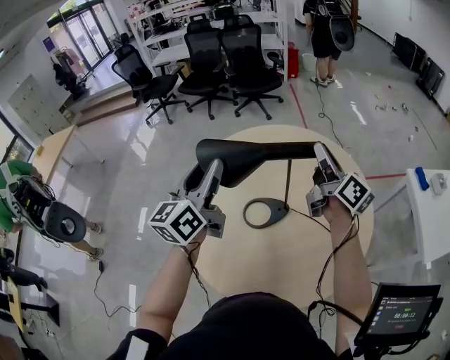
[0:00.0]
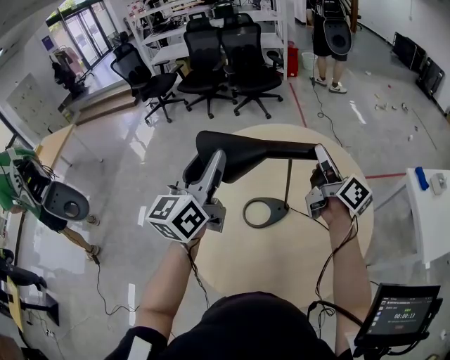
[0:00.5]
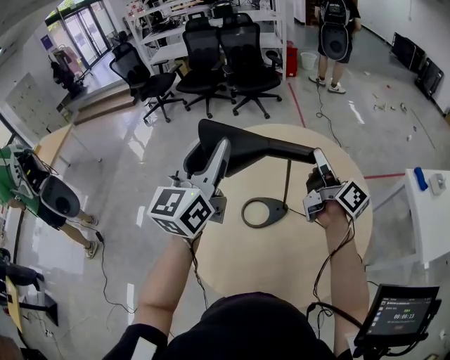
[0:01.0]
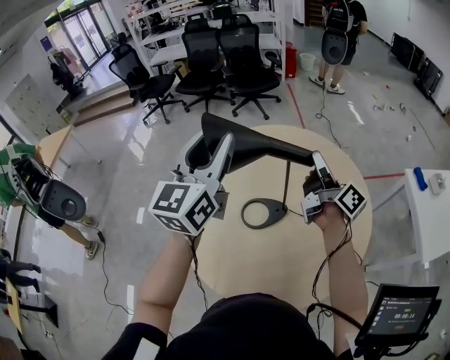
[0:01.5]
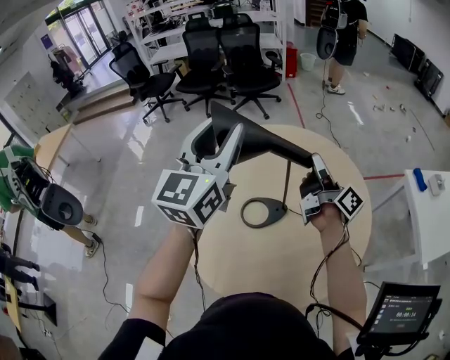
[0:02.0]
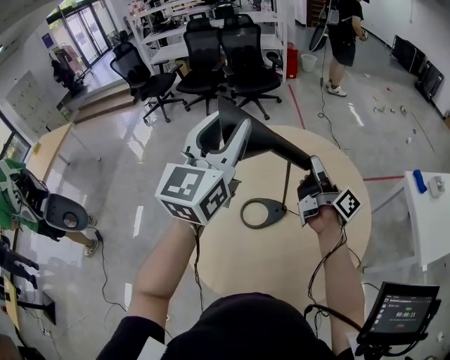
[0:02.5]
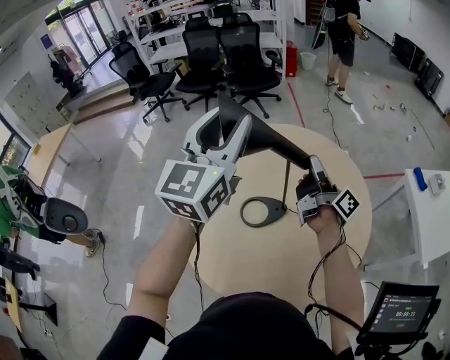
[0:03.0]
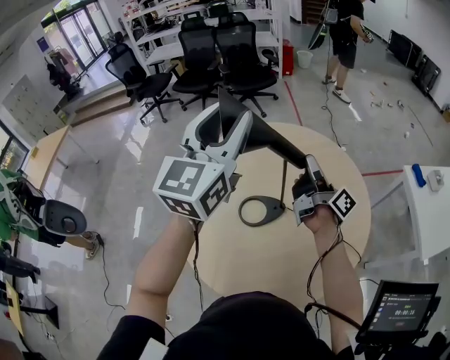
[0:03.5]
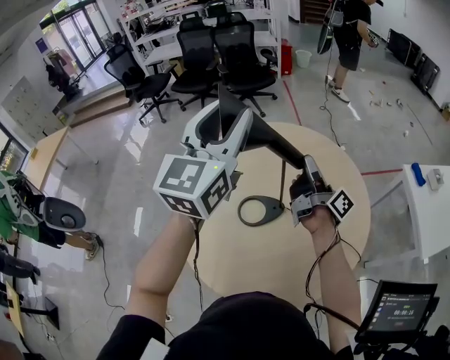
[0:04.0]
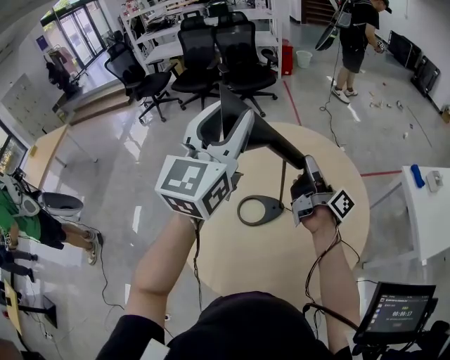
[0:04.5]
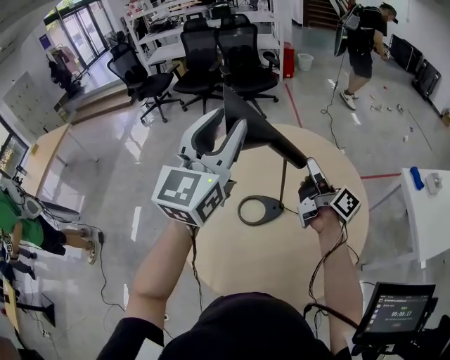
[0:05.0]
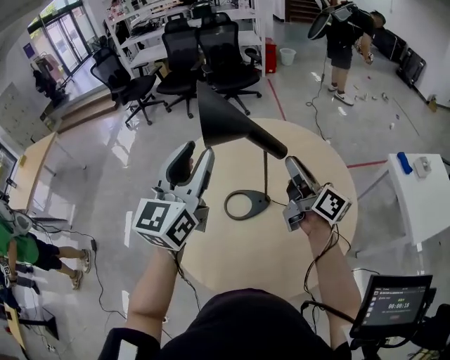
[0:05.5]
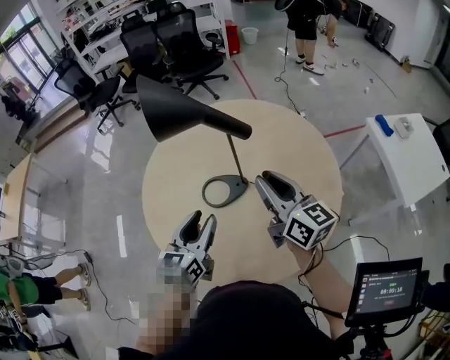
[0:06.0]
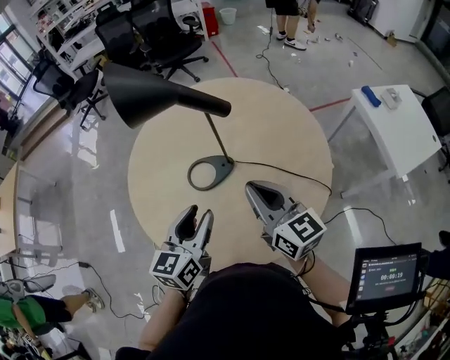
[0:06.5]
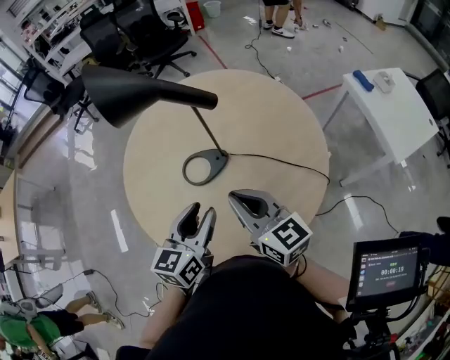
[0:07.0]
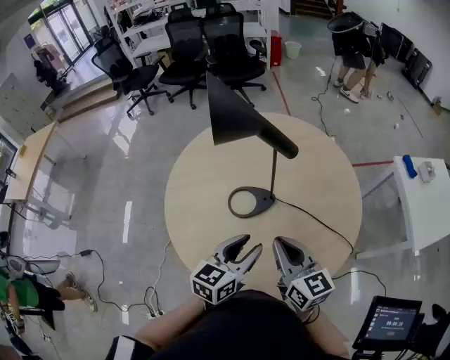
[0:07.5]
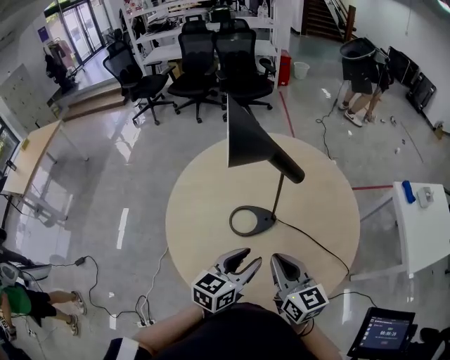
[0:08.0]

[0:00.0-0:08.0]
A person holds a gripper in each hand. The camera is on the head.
0:00.0 to 0:02.0: The left gripper travels upward and to the right by some 10 cm, and changes its angle by about 20 degrees, while the right gripper is displaced downward by about 5 cm, and swivels roughly 20 degrees.
0:02.0 to 0:04.0: The grippers move only a little.
0:04.0 to 0:06.0: The left gripper is displaced downward and backward by some 30 cm, and swivels about 30 degrees; the right gripper heads backward, covering approximately 15 cm, and twists roughly 50 degrees counterclockwise, seen from behind.
0:06.0 to 0:08.0: The right gripper travels backward, downward and to the left by approximately 10 cm, and closes. Meanwhile the left gripper shifts by roughly 5 cm.

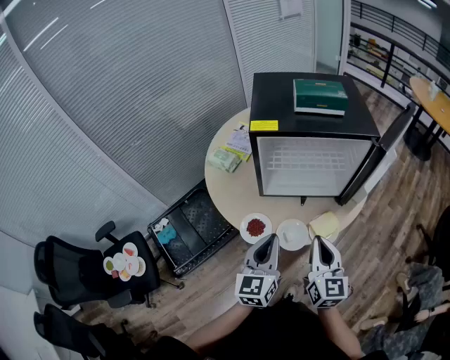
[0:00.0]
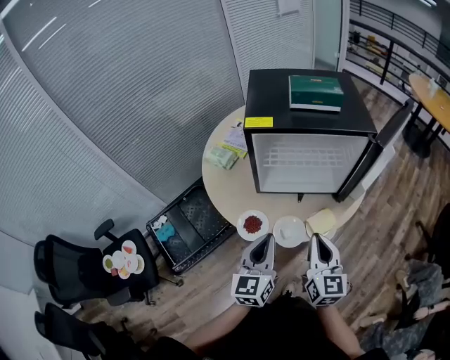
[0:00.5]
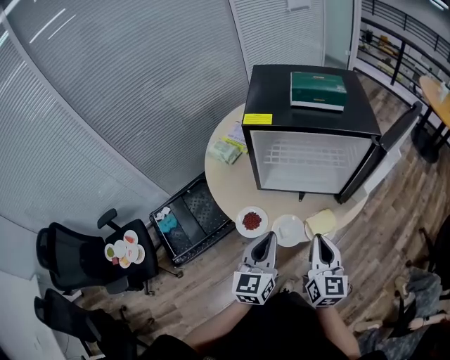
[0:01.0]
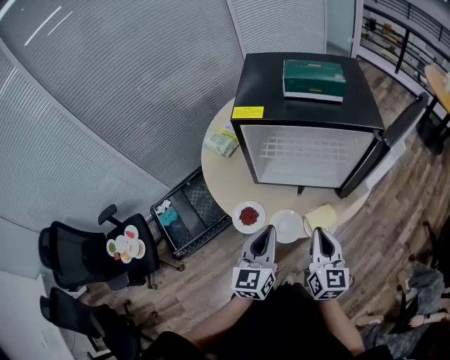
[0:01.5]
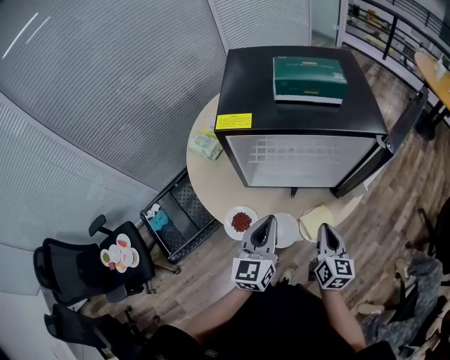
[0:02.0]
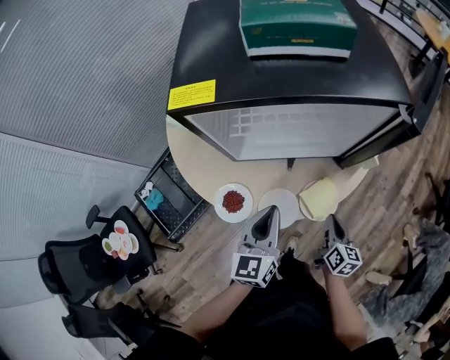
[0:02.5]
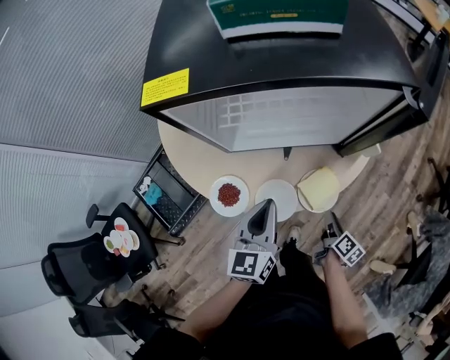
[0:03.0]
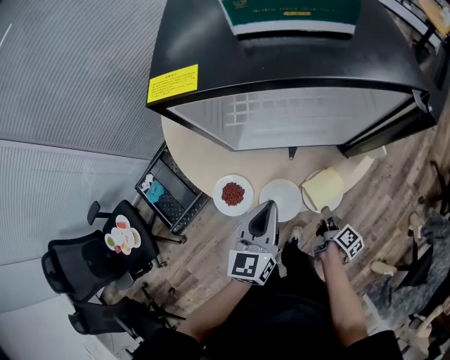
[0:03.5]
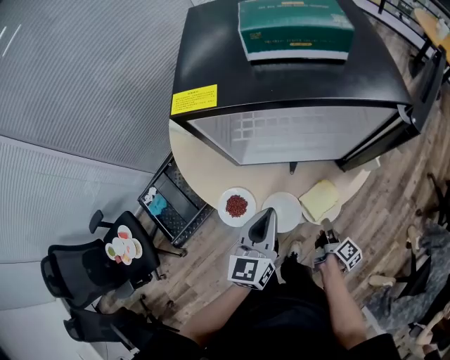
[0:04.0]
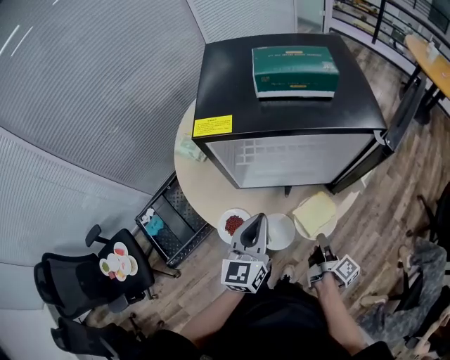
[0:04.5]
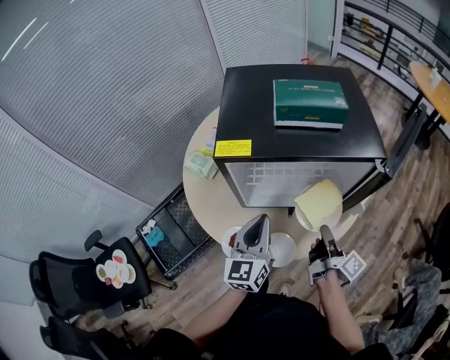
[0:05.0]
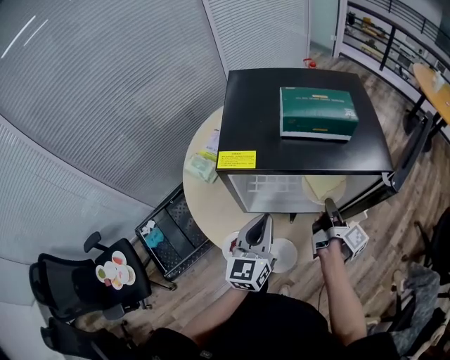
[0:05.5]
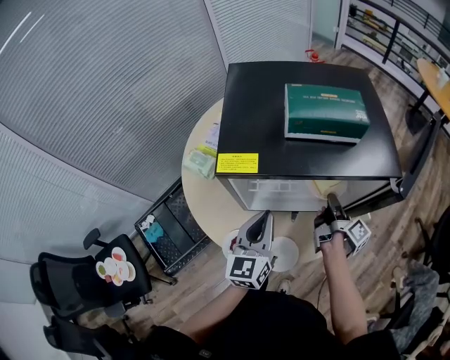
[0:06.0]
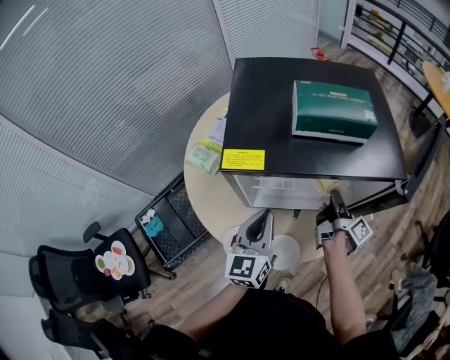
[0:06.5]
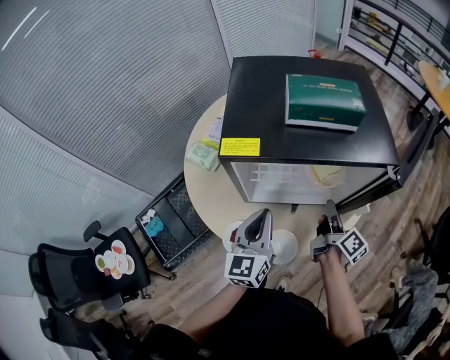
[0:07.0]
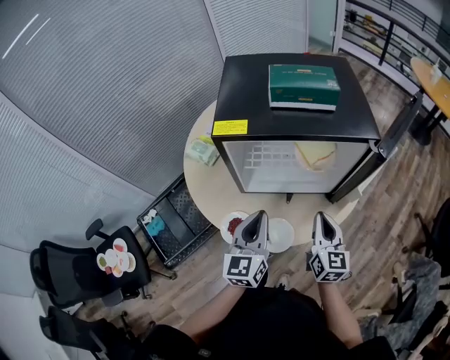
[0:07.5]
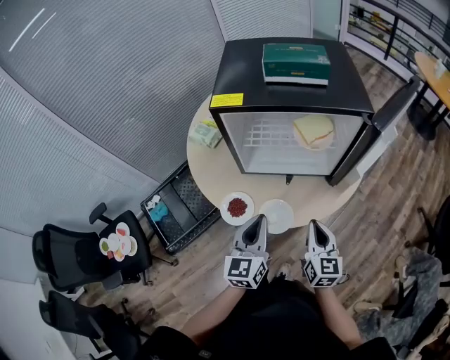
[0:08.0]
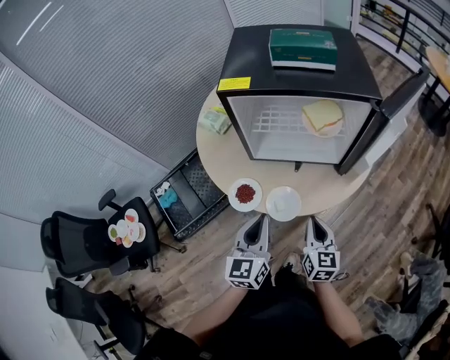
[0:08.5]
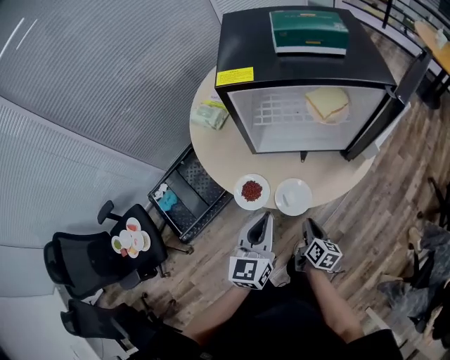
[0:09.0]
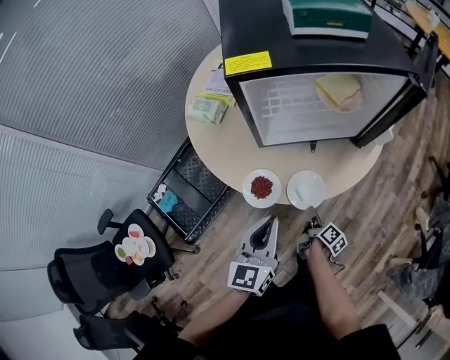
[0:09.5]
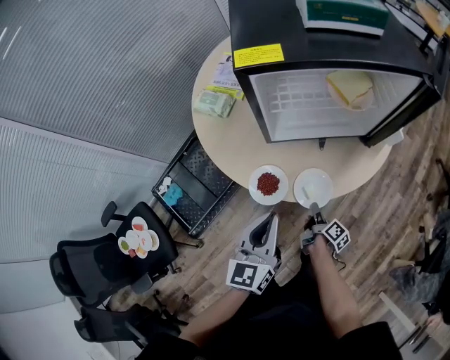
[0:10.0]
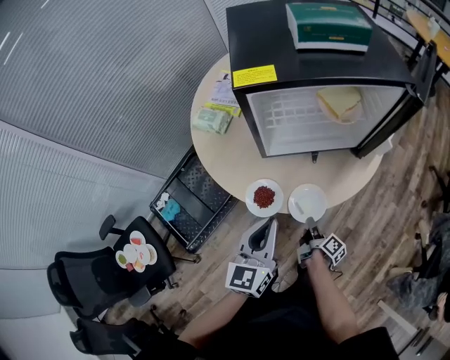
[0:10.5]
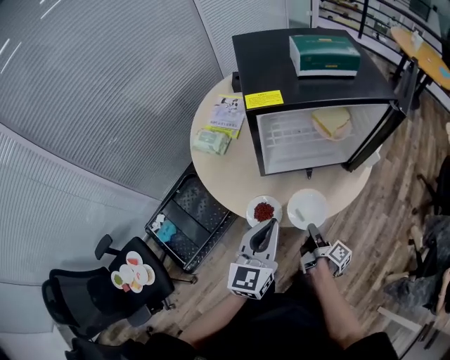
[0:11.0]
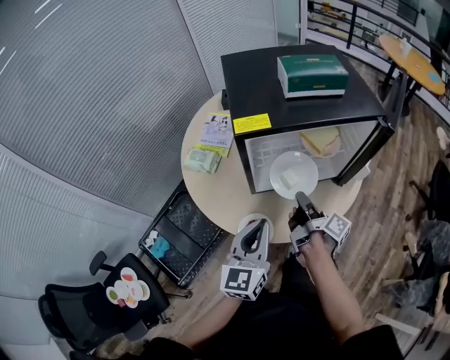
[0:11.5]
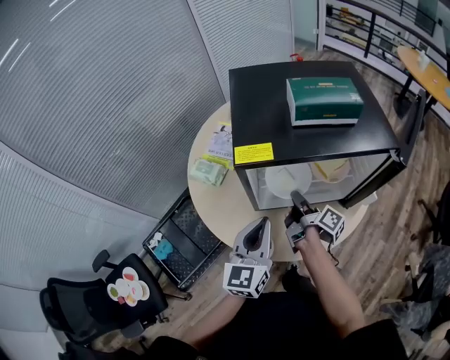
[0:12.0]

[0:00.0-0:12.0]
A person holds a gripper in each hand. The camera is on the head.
0:00.0 to 0:02.0: The left gripper is displaced forward and to the right by about 10 cm. The right gripper moves downward, to the right and forward, approximately 15 cm.
0:02.0 to 0:04.0: The left gripper is displaced downward by about 5 cm, while the right gripper moves downward, some 20 cm, twists approximately 50 degrees clockwise, seen from behind, and opens, then closes once more.
0:04.0 to 0:06.0: The left gripper is displaced forward and upward by roughly 15 cm. Meanwhile the right gripper is displaced forward and upward by about 30 cm, and turns by approximately 20 degrees.
0:06.0 to 0:08.0: Both grippers travel together backward, approximately 20 cm. The right gripper rotates around the line of its fingers by approximately 70 degrees, counterclockwise from behind.
0:08.0 to 0:10.0: The right gripper goes some 30 cm downward and to the left, and rotates around the line of its fingers by roughly 70 degrees, clockwise from behind. The left gripper shifts roughly 10 cm to the left.
0:10.0 to 0:12.0: The right gripper shifts some 35 cm upward and forward, and rotates approximately 20 degrees; the left gripper is displaced forward and upward by about 15 cm.

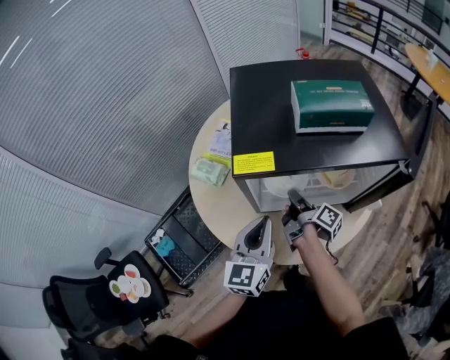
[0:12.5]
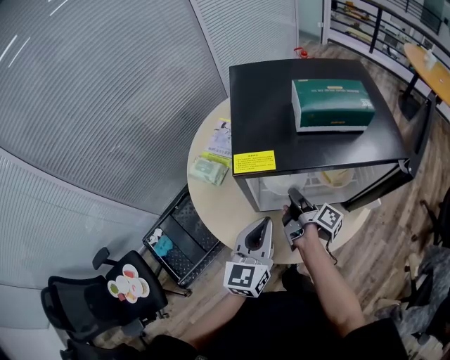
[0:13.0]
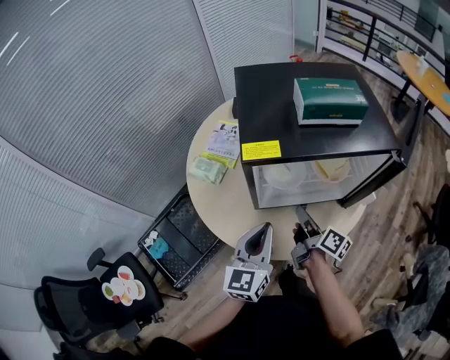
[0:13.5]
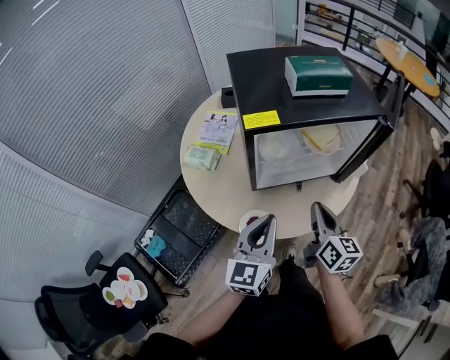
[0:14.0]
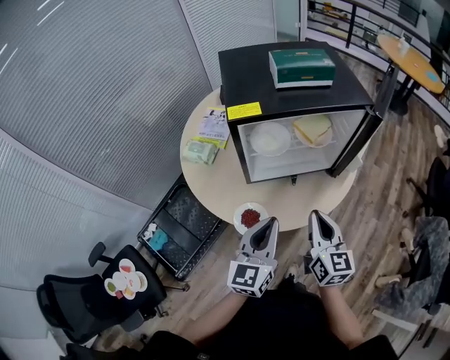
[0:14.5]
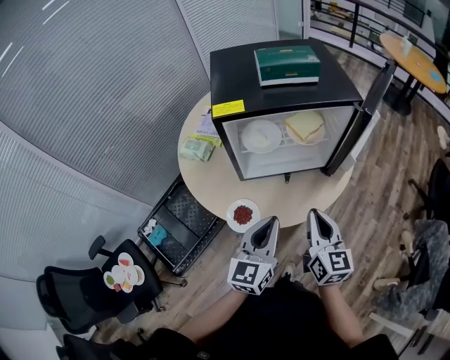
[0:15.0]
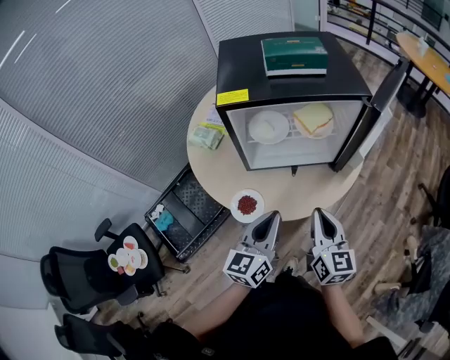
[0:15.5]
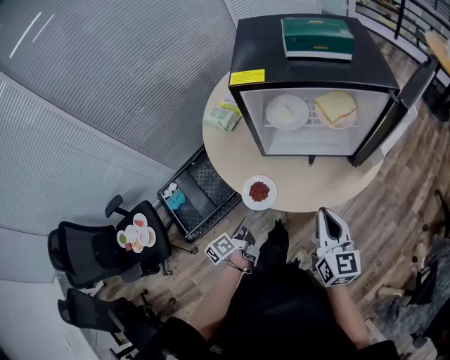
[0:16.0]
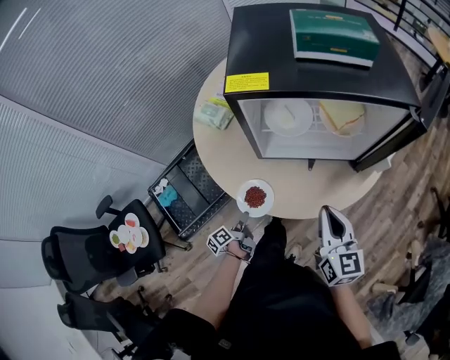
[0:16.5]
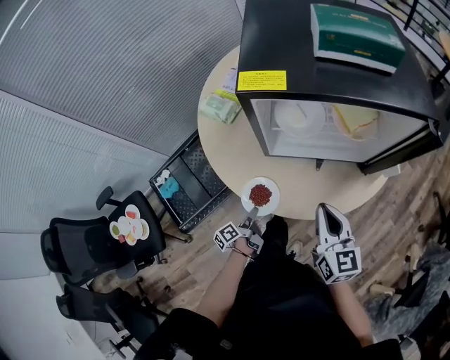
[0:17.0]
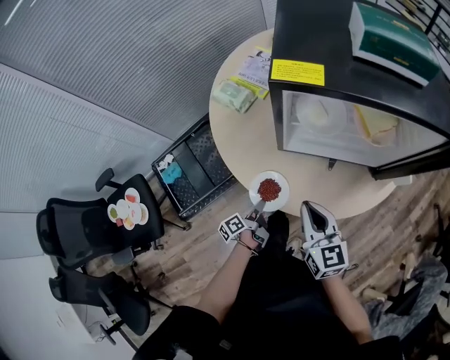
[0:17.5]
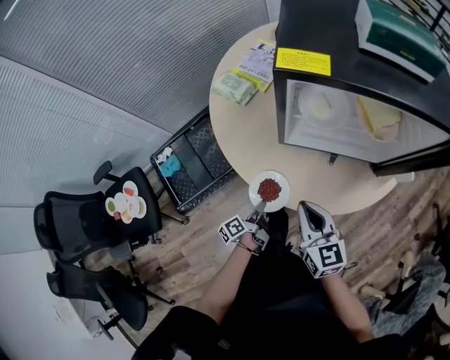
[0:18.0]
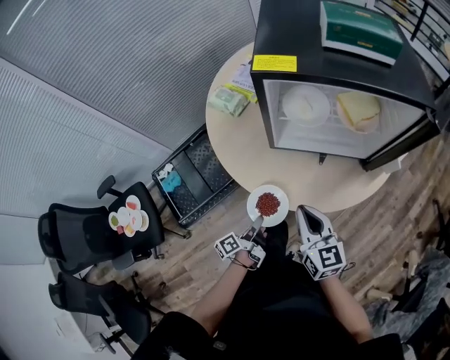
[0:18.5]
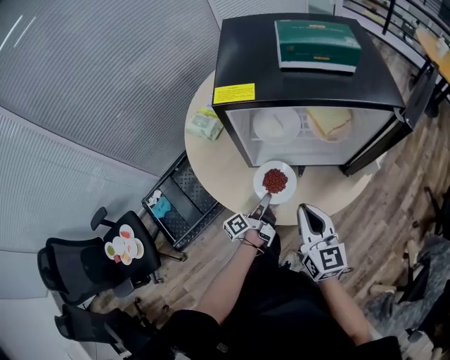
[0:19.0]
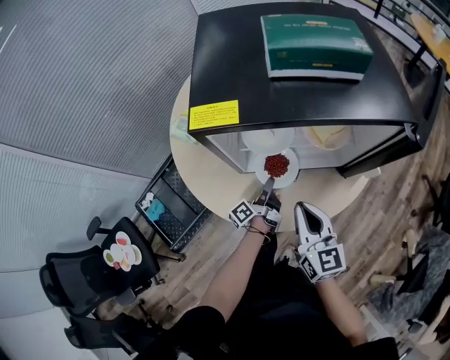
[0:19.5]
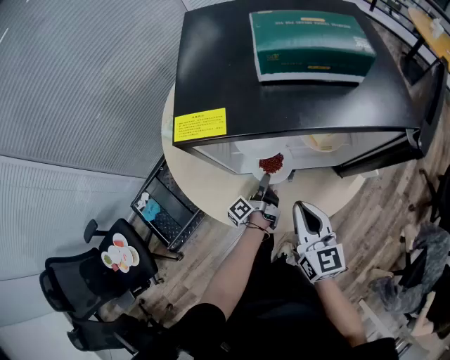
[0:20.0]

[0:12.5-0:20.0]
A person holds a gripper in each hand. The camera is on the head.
0:12.5 to 0:14.5: The left gripper heads backward, covering about 15 cm; the right gripper moves backward and upward, about 25 cm, and twists roughly 70 degrees counterclockwise, seen from behind.
0:14.5 to 0:16.5: The right gripper goes about 5 cm downward. The left gripper goes approximately 35 cm downward, twists approximately 70 degrees counterclockwise, seen from behind, and opens.
0:16.5 to 0:18.0: The right gripper goes approximately 15 cm to the left and downward.
0:18.0 to 0:20.0: The right gripper is displaced to the right and forward by approximately 15 cm. Meanwhile the left gripper heads forward and to the right, covering roughly 25 cm.
